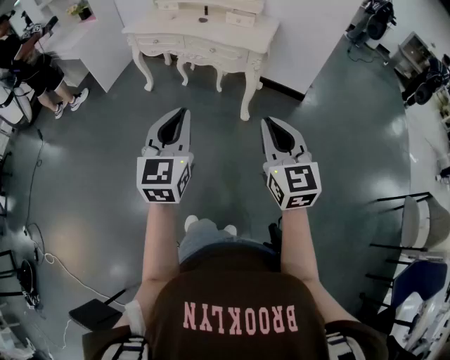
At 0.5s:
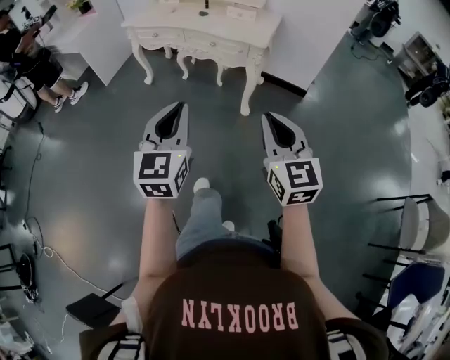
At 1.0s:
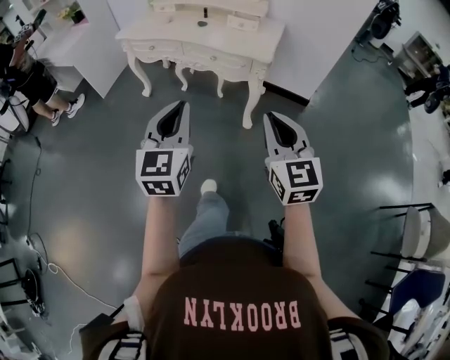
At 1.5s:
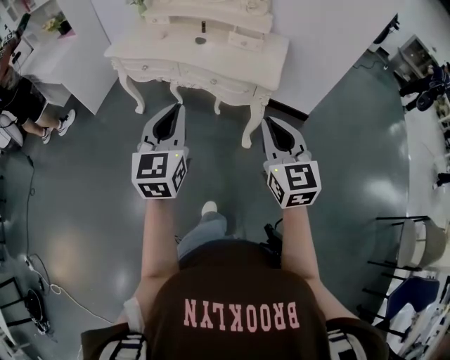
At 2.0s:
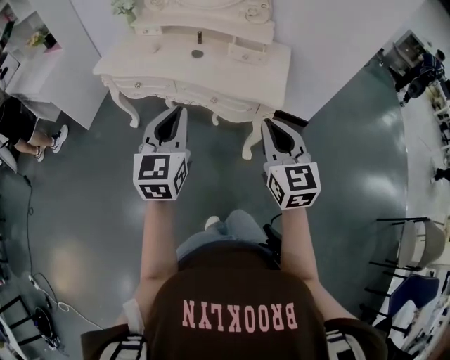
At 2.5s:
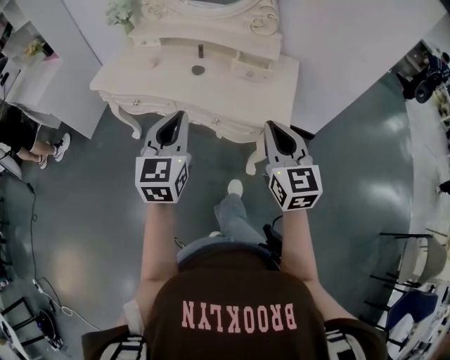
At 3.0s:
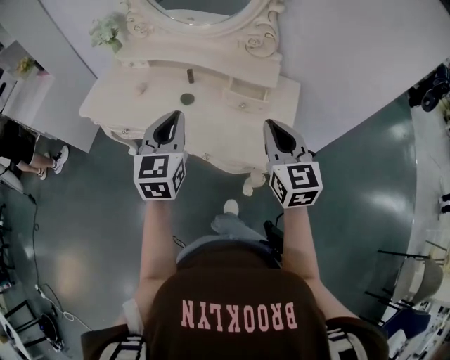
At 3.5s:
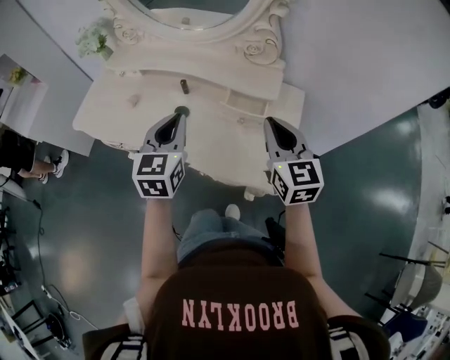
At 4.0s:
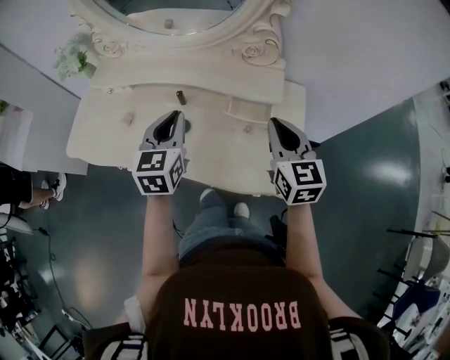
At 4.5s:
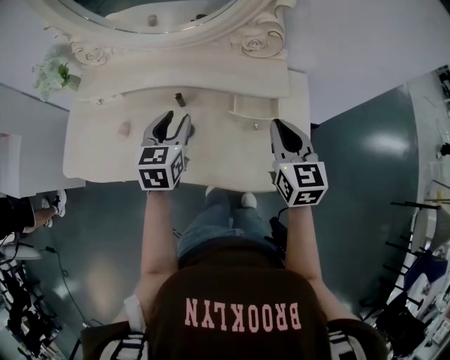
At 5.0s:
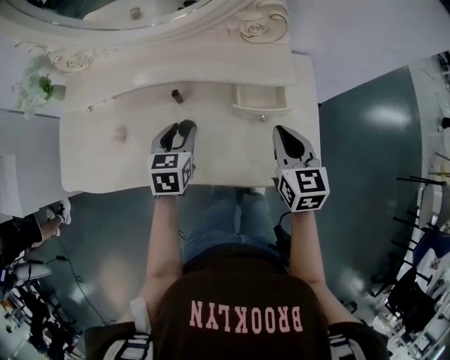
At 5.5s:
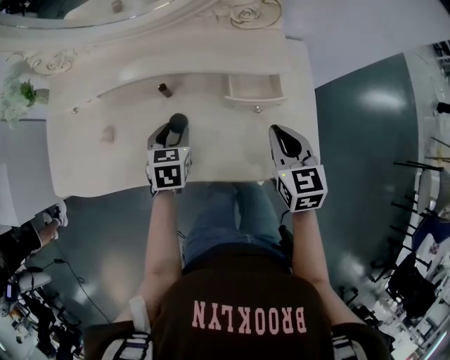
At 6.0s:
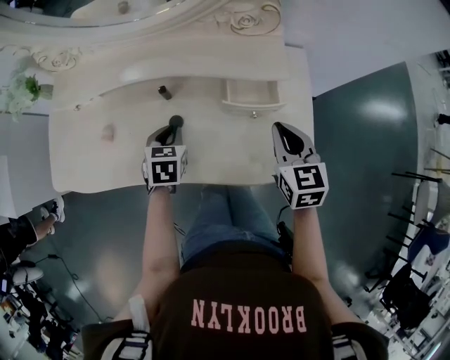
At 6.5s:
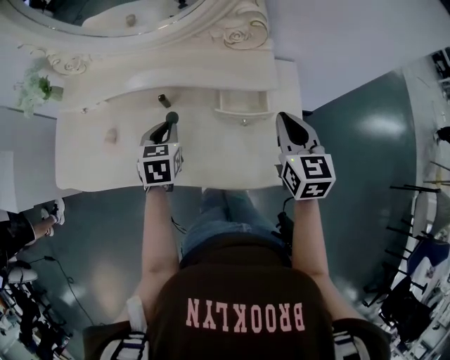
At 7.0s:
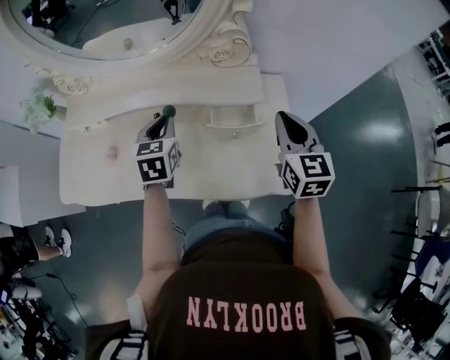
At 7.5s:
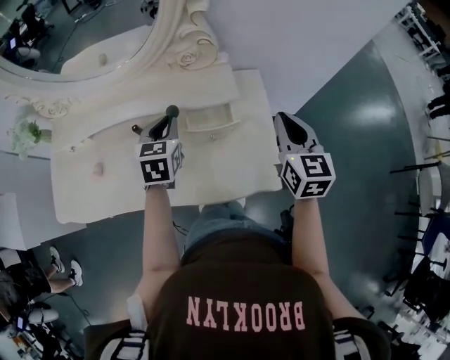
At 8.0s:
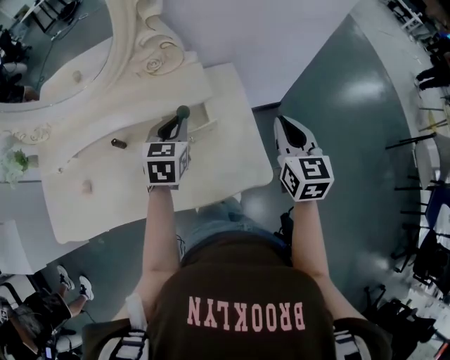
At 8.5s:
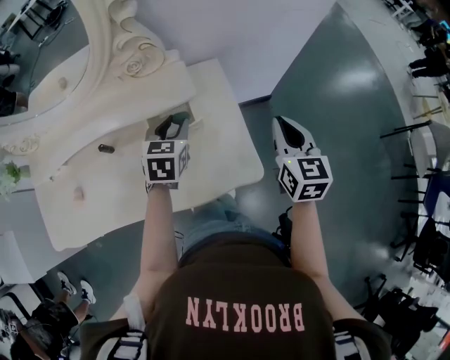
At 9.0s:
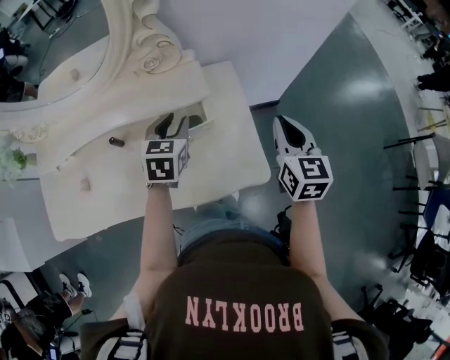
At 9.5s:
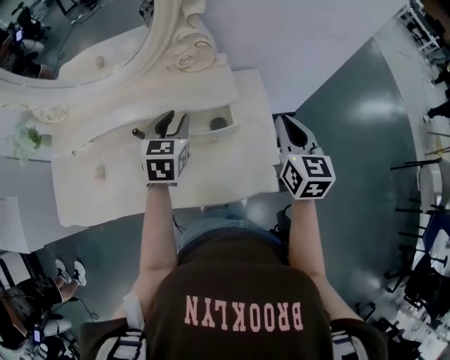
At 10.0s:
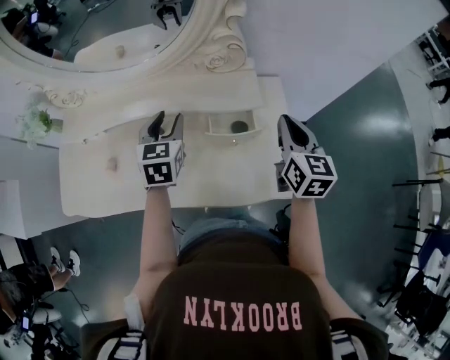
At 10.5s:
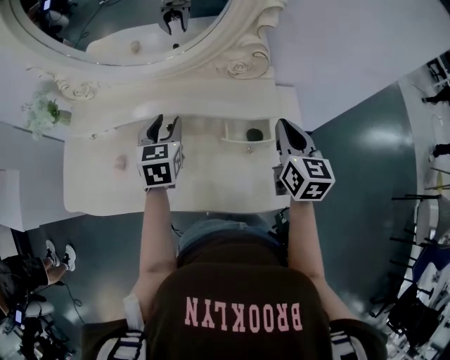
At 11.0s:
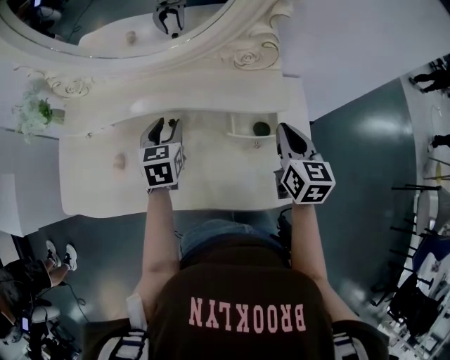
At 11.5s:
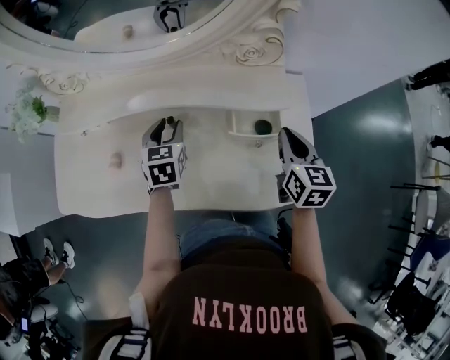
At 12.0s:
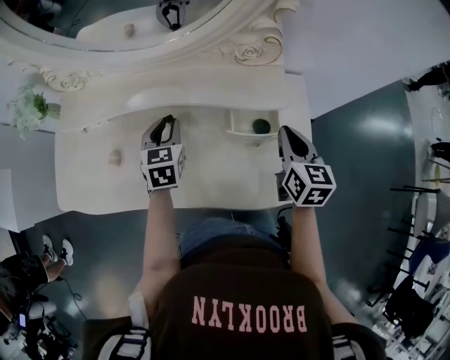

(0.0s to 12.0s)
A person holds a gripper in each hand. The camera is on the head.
0.0s - 2.0s: The pair of grippers is taken forward, approximately 40 cm.
2.0s - 4.0s: The two grippers travel together, forward, roughly 40 cm.
4.0s - 6.0s: The left gripper is displaced downward by about 20 cm, tilts its fingers roughly 30 degrees downward, and opens, then closes again. The right gripper goes roughly 10 cm downward.
6.0s - 8.0s: The right gripper moves to the right, about 20 cm, and changes its angle by approximately 20 degrees, while the left gripper is displaced to the right and upward by about 25 cm, and rotates about 20 degrees.
8.0s - 10.0s: Both grippers move to the left, about 15 cm. The left gripper opens up.
10.0s - 12.0s: Both grippers travel together downward and to the left, roughly 10 cm.

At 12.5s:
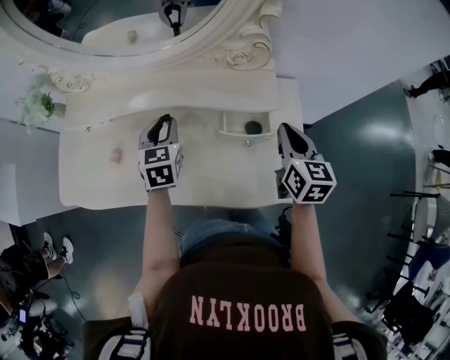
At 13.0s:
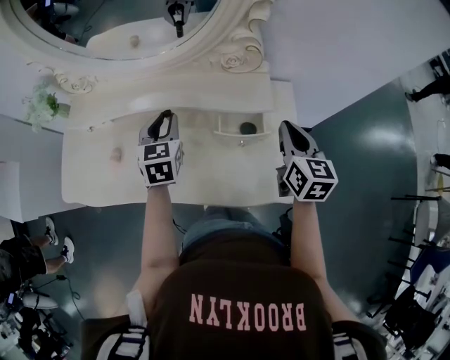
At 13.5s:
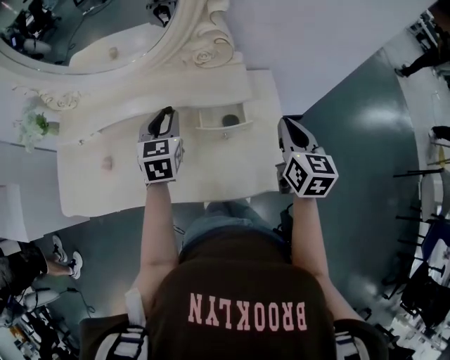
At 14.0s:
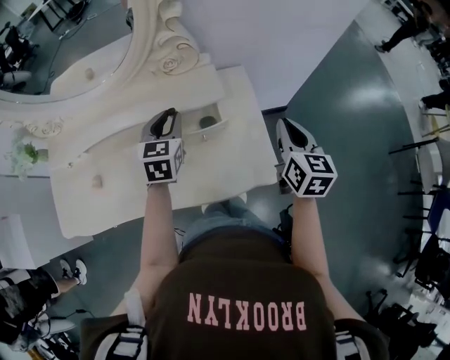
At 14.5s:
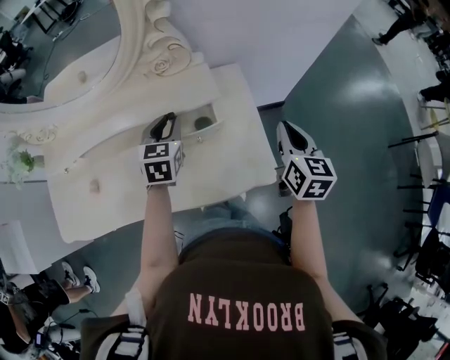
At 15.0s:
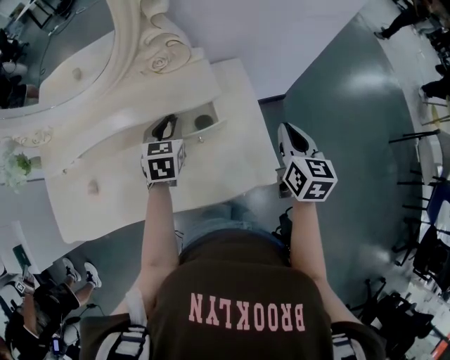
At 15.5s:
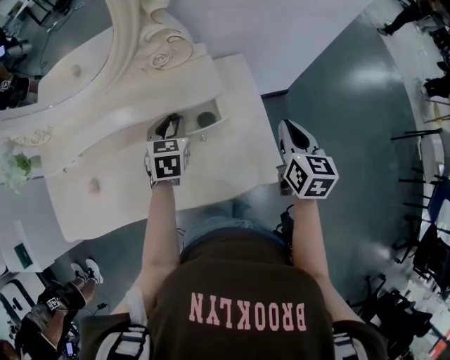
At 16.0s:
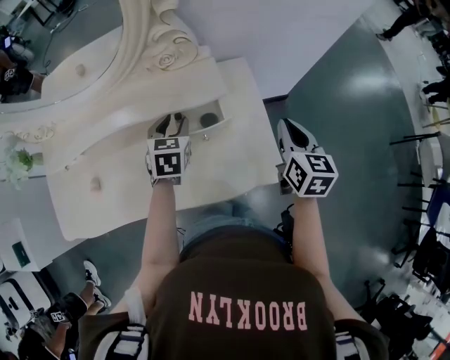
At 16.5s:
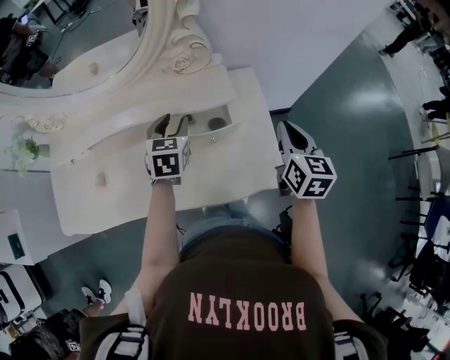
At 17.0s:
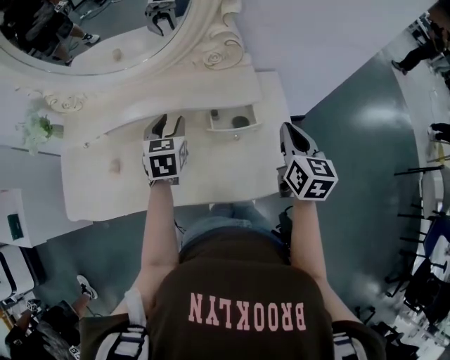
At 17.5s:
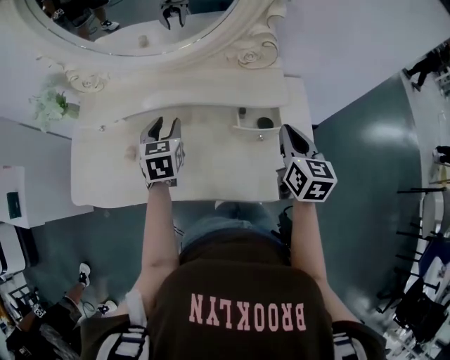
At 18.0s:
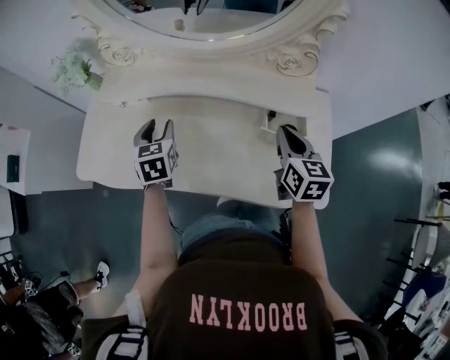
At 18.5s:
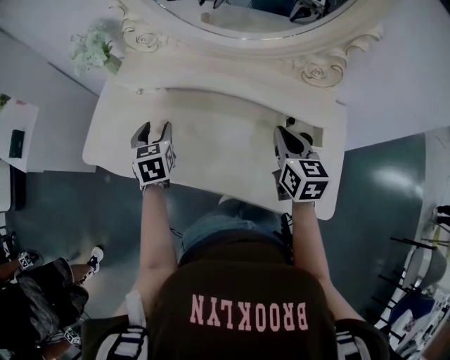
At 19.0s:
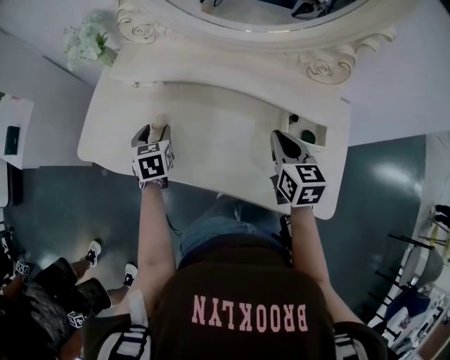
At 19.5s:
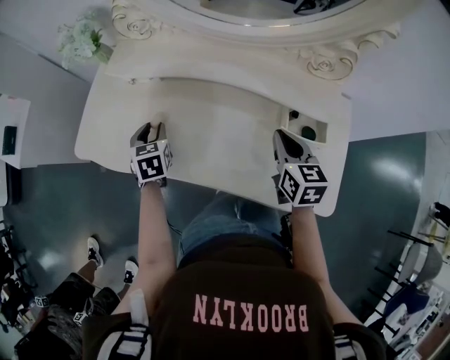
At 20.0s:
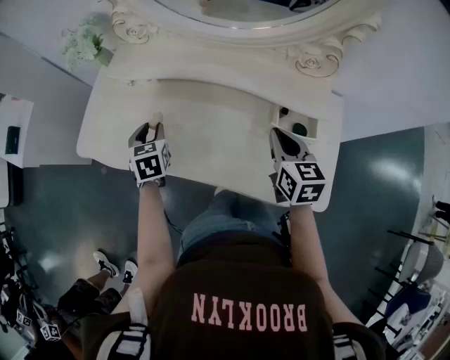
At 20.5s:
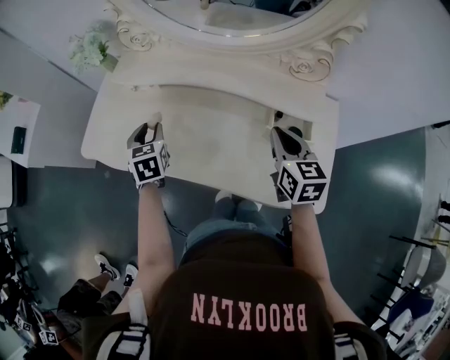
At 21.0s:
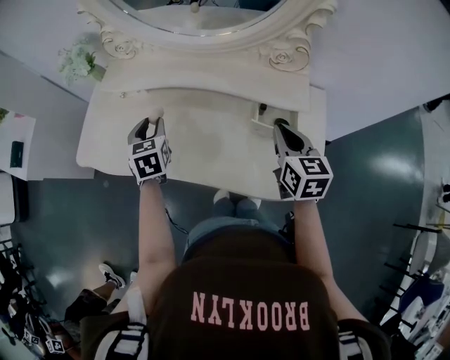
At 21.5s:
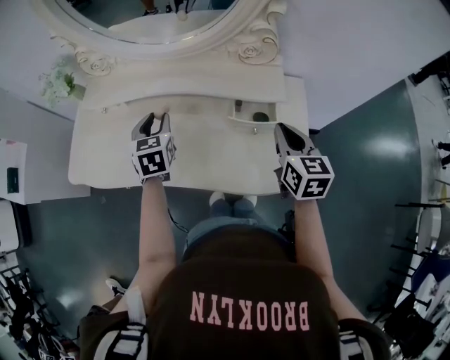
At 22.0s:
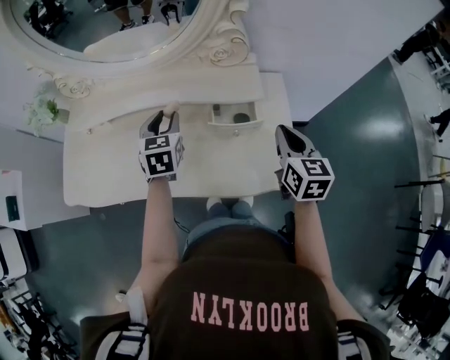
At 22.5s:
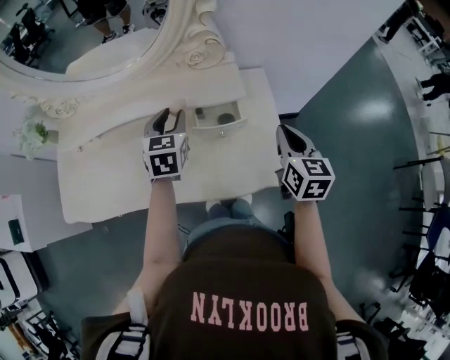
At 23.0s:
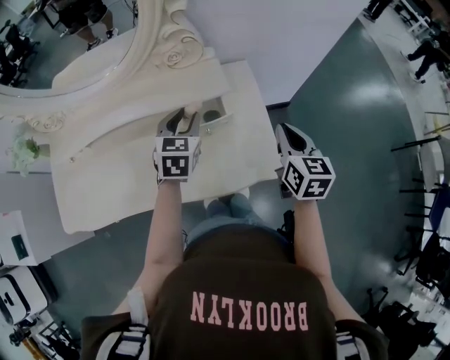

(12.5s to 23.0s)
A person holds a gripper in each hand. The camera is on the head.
12.5s - 14.5s: The left gripper is displaced to the right by roughly 20 cm, while the right gripper travels to the right and backward by approximately 15 cm.
14.5s - 16.5s: The grippers move only a little.
16.5s - 19.0s: The right gripper ends up some 30 cm from where it was, and swivels about 30 degrees. The left gripper ends up roughly 40 cm from where it was, and rotates about 40 degrees.
19.0s - 21.0s: The left gripper moves upward and to the right, approximately 10 cm; the right gripper shifts roughly 10 cm to the right, upward and backward.
21.0s - 23.0s: The right gripper shifts by about 25 cm, and changes its angle by about 30 degrees, while the left gripper moves about 35 cm, and turns by approximately 40 degrees.

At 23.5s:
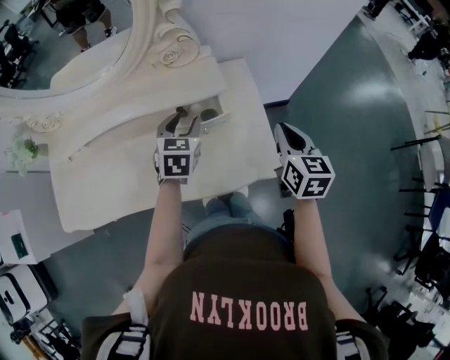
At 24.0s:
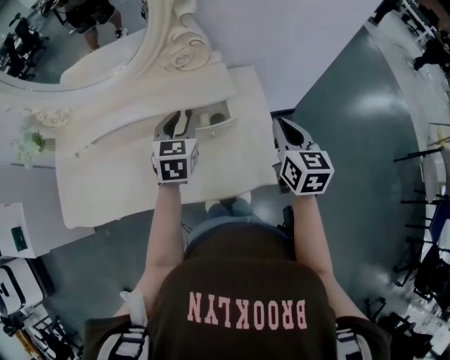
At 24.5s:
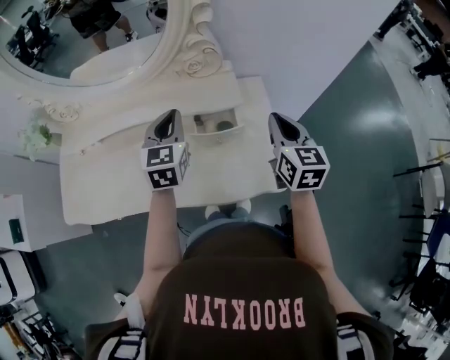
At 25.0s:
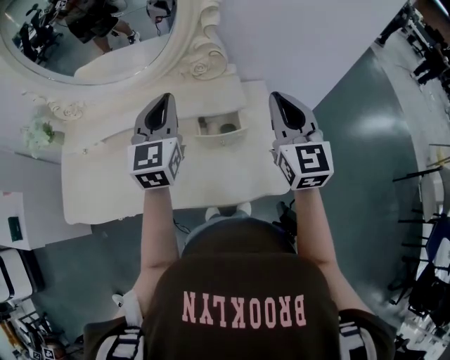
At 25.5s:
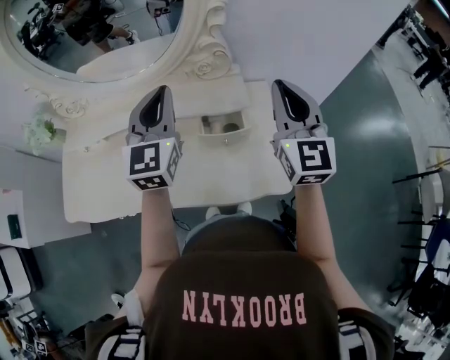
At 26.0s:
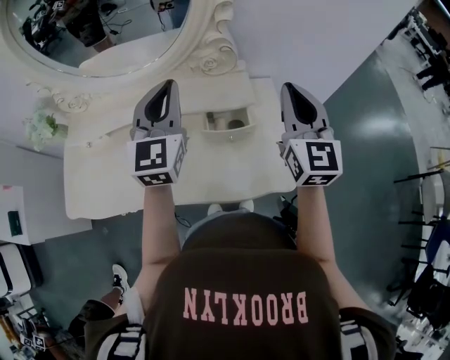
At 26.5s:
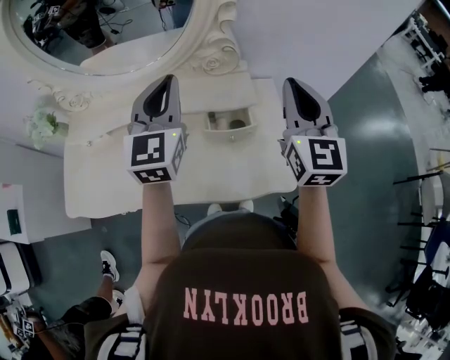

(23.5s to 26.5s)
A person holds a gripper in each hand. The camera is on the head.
23.5s - 25.0s: The left gripper moves upward and to the left, about 20 cm, points its fingers approximately 30 degrees further upward, and closes up. The right gripper goes approximately 20 cm upward, to the left and forward, and rotates approximately 30 degrees.
25.0s - 26.5s: The left gripper is displaced upward by about 5 cm.

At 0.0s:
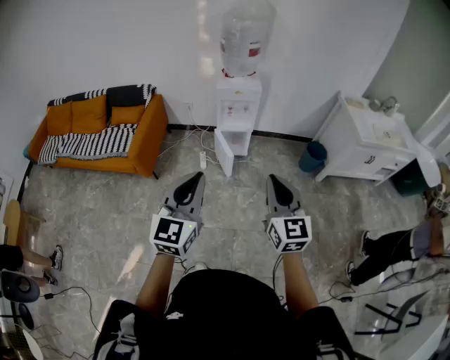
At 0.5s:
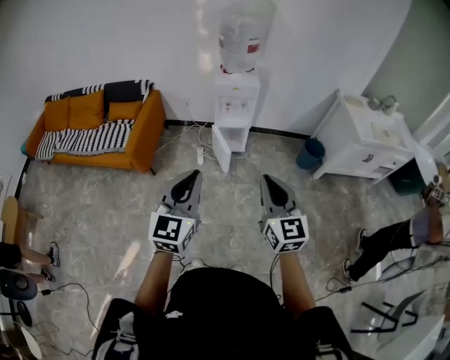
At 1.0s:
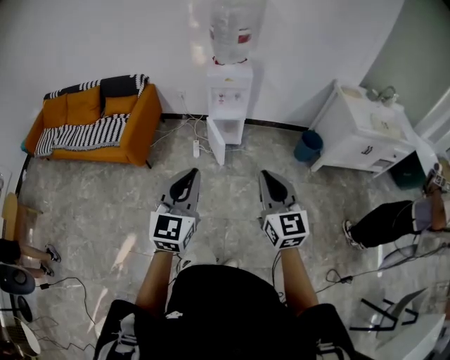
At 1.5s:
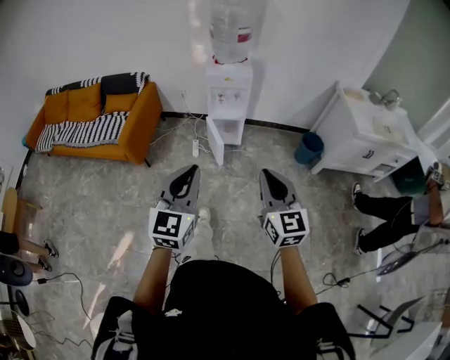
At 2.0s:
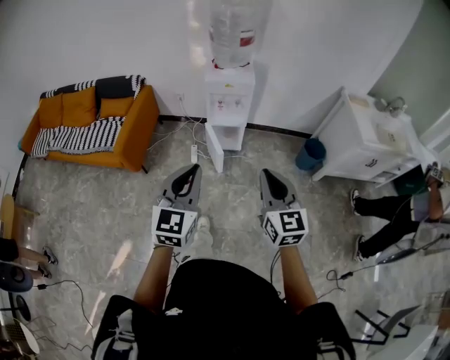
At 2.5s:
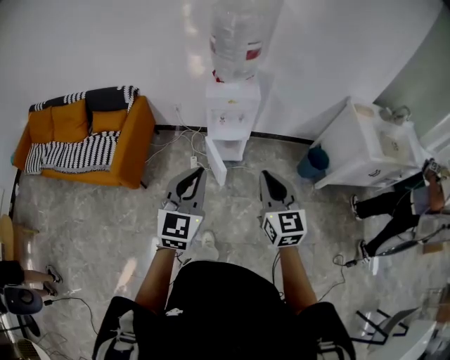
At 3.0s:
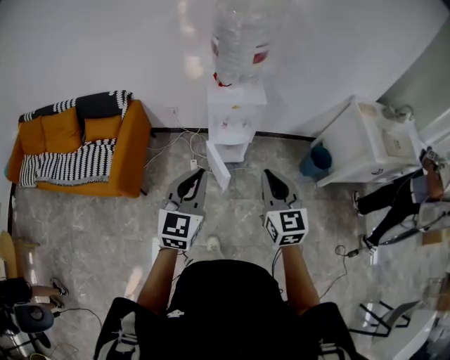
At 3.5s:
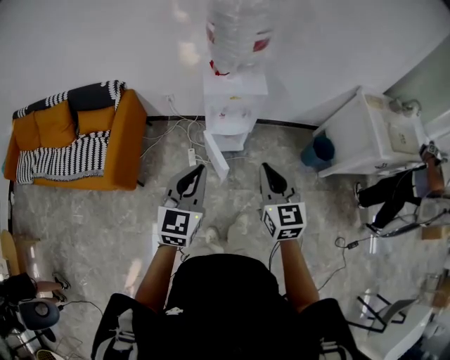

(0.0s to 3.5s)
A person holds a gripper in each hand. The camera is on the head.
0.0s - 2.0s: The left gripper goes approximately 15 cm forward, to the right and downward, while the right gripper travels forward and to the right by approximately 10 cm.
2.0s - 3.5s: The grippers both shift forward by approximately 30 cm.
